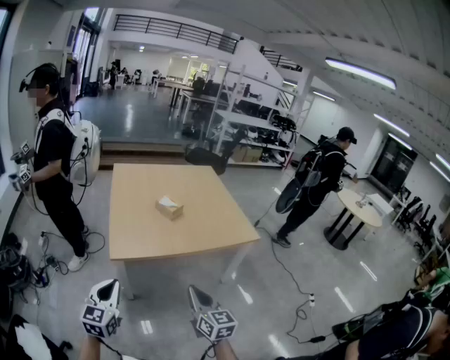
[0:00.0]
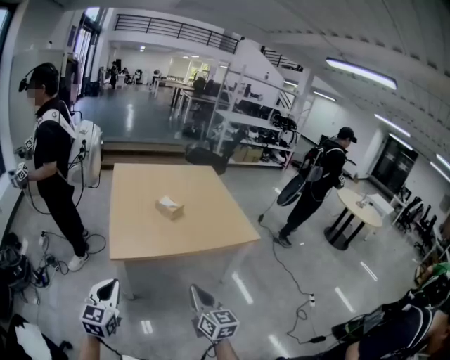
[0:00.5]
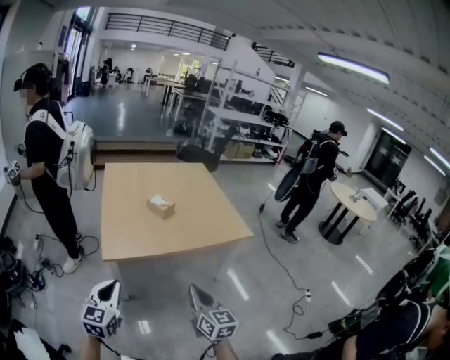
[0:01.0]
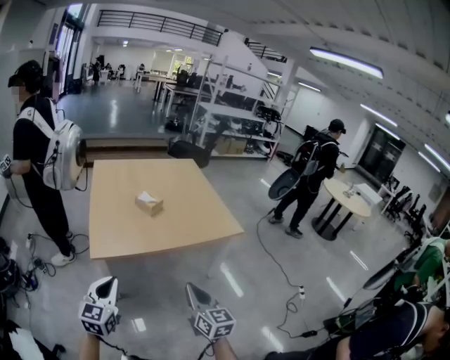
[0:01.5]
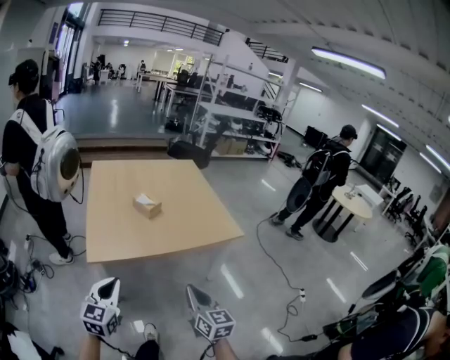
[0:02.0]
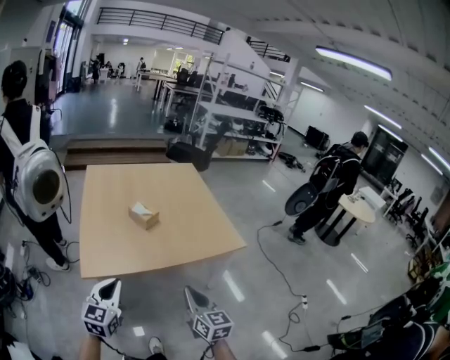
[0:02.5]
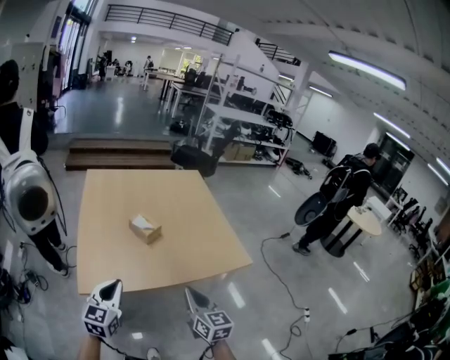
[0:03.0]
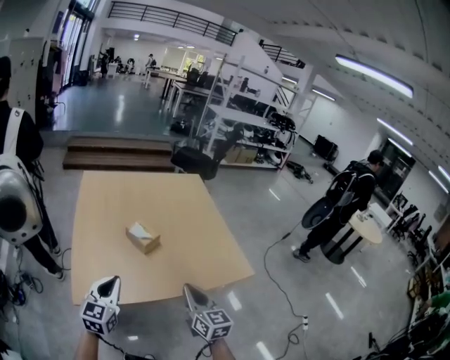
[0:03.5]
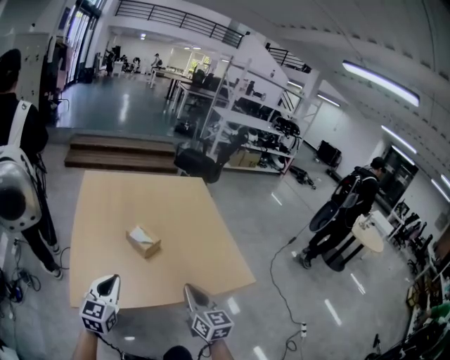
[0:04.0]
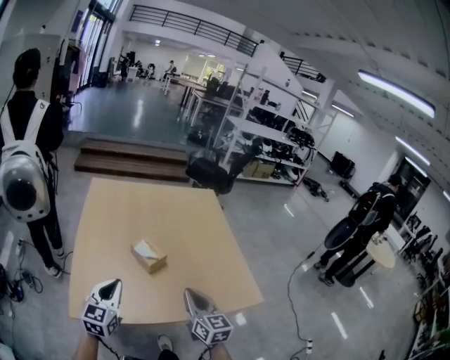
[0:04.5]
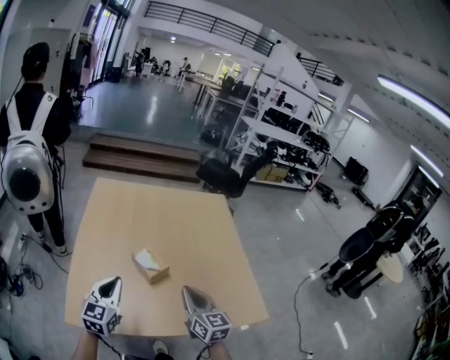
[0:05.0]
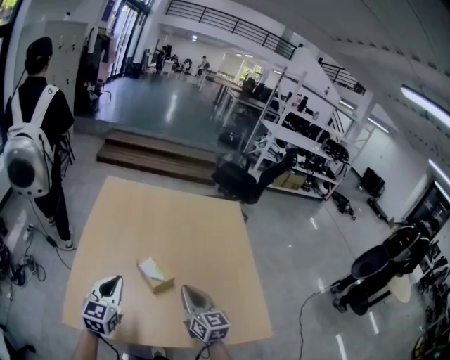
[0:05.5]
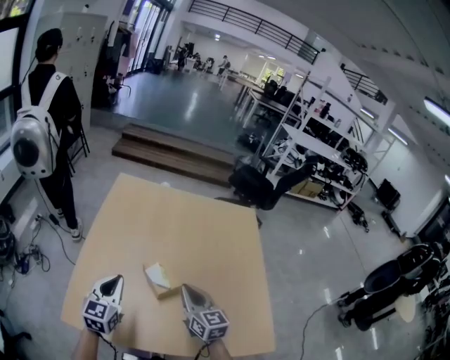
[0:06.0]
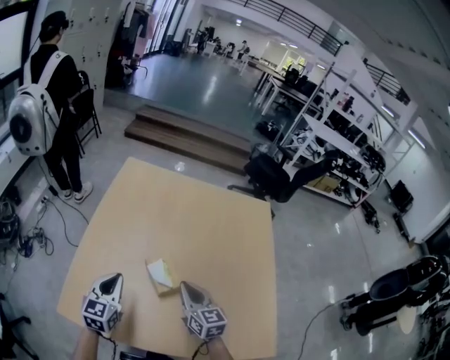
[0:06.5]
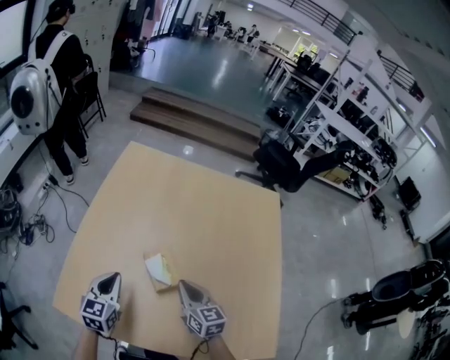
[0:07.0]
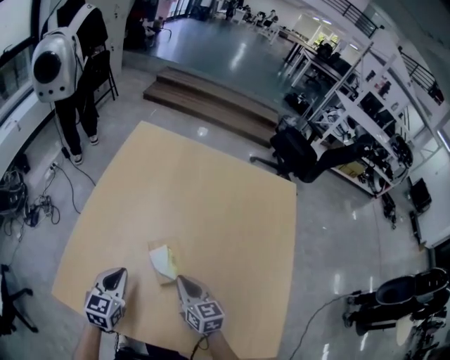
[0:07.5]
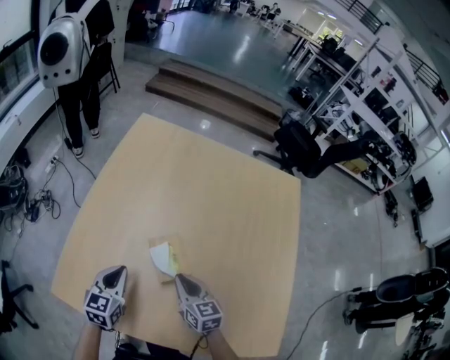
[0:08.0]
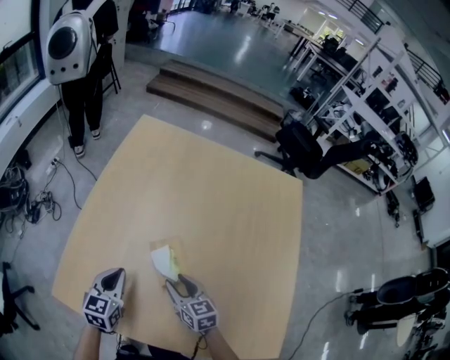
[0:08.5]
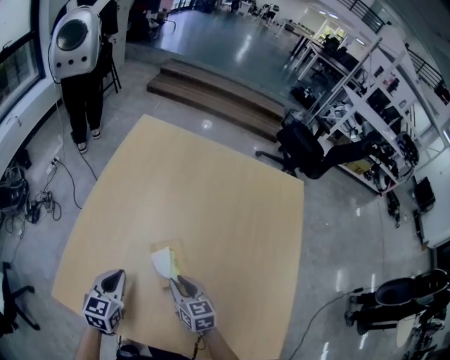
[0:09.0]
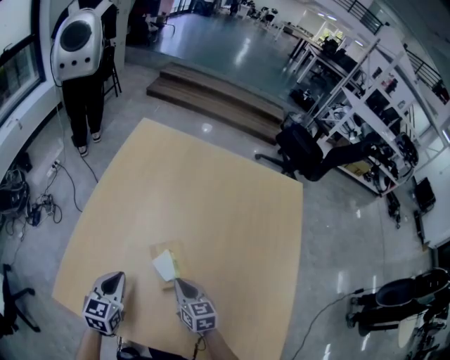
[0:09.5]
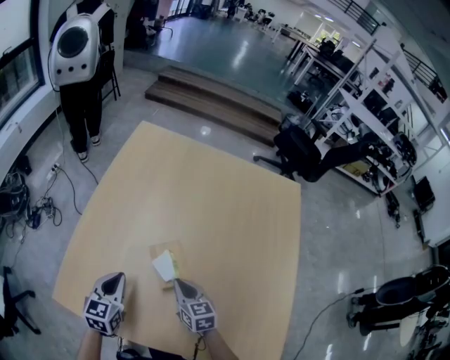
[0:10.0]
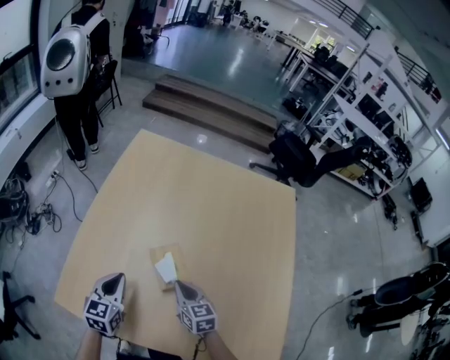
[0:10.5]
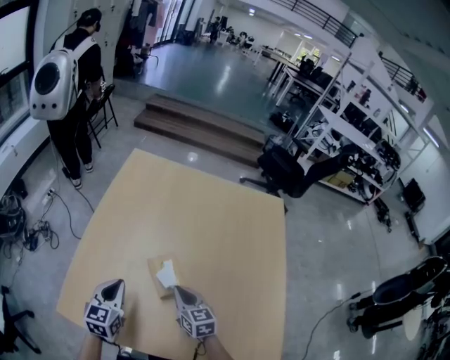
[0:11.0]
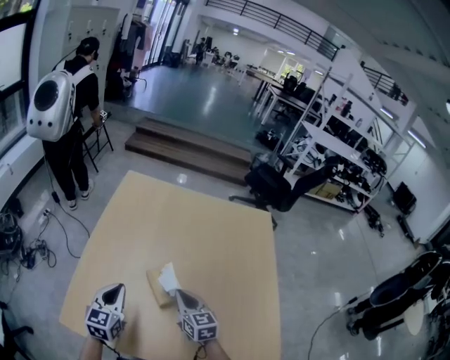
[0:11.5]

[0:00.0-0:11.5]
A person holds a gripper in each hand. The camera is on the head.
0:00.0 to 0:02.0: Both grippers move to the right, some 10 cm.
0:02.0 to 0:04.0: The two grippers go some 30 cm forward.
0:04.0 to 0:06.0: Both grippers travel together forward, approximately 20 cm. The right gripper changes its angle by some 20 degrees.
0:06.0 to 0:07.5: Both grippers move downward, approximately 10 cm.
0:07.5 to 0:09.5: The right gripper moves downward, roughly 5 cm, and opens and closes again.
0:09.5 to 0:11.5: The grippers both shift upward by approximately 10 cm.

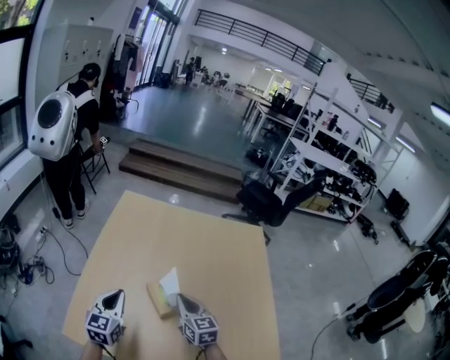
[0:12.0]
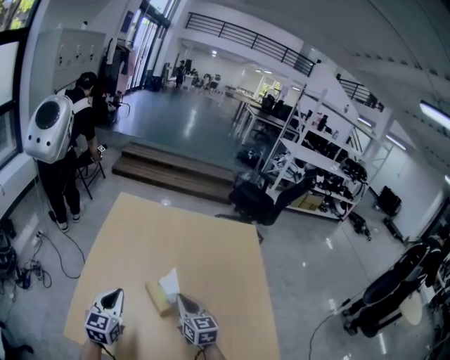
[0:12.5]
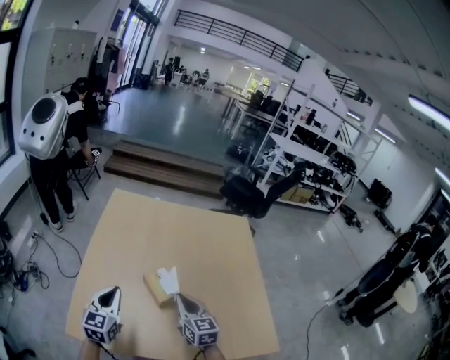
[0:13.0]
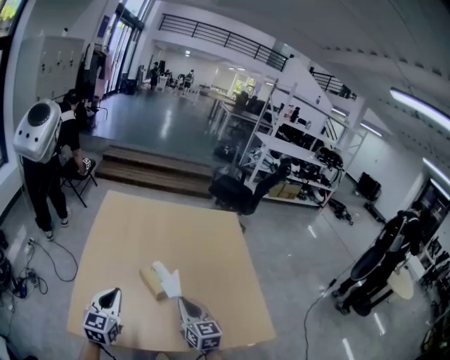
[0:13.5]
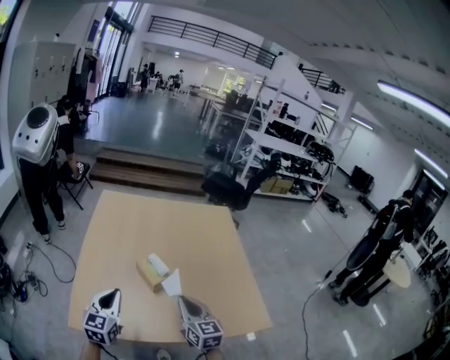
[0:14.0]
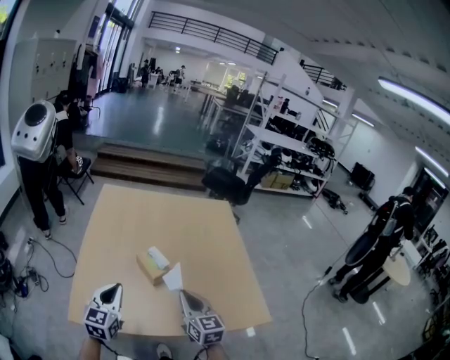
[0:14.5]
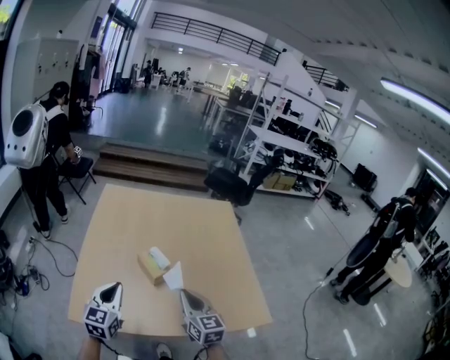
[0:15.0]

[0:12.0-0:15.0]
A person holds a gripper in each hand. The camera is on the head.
0:12.0 to 0:13.5: The left gripper travels backward by approximately 10 cm, while the right gripper travels backward by about 15 cm.
0:13.5 to 0:15.0: The left gripper shifts by some 5 cm, while the right gripper is displaced backward by approximately 5 cm.

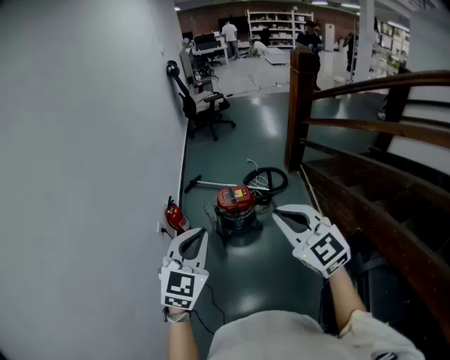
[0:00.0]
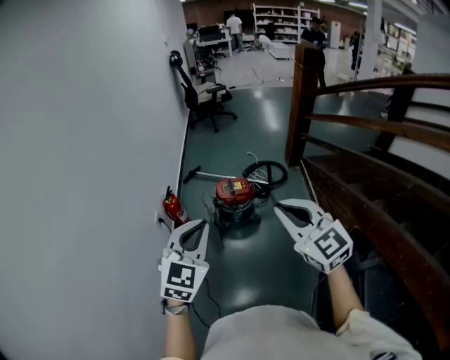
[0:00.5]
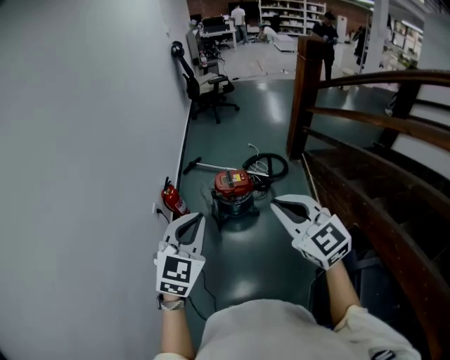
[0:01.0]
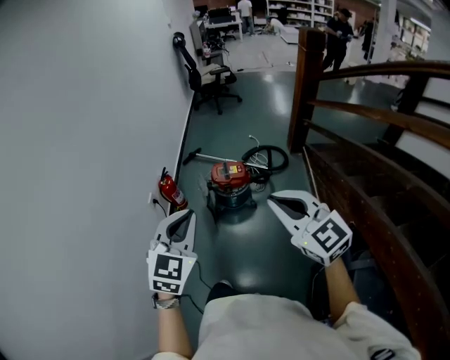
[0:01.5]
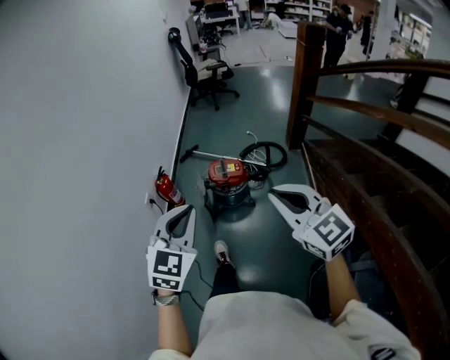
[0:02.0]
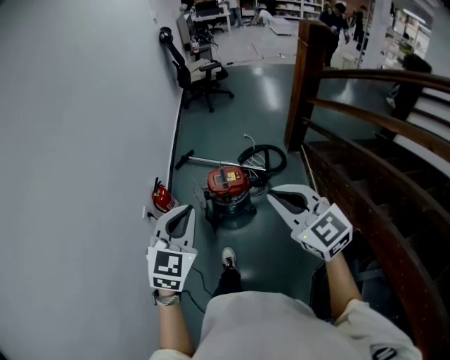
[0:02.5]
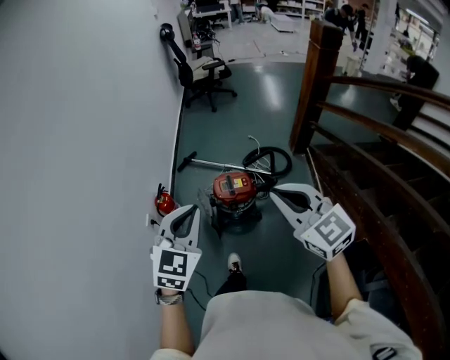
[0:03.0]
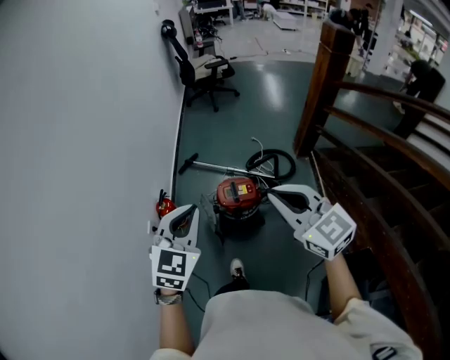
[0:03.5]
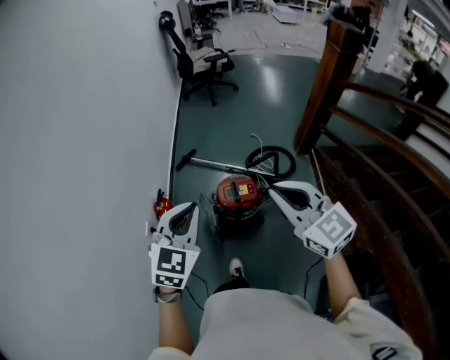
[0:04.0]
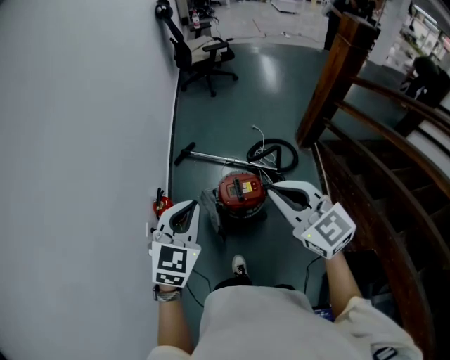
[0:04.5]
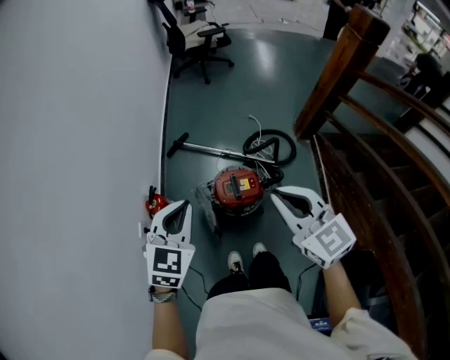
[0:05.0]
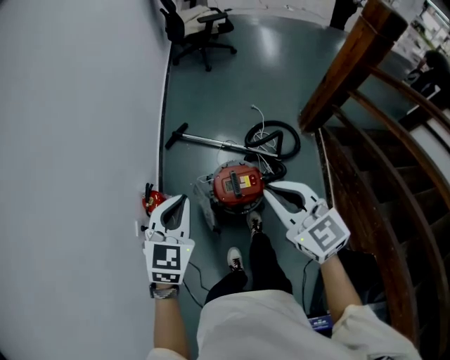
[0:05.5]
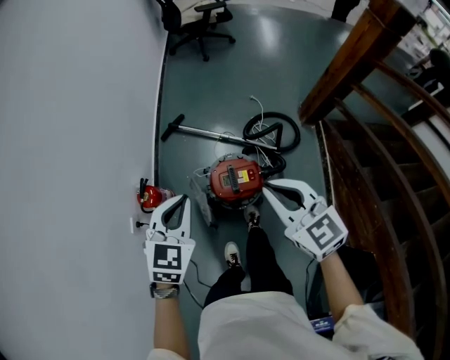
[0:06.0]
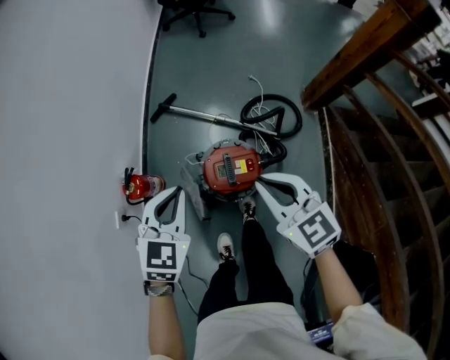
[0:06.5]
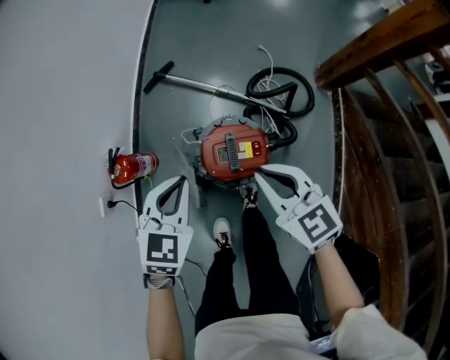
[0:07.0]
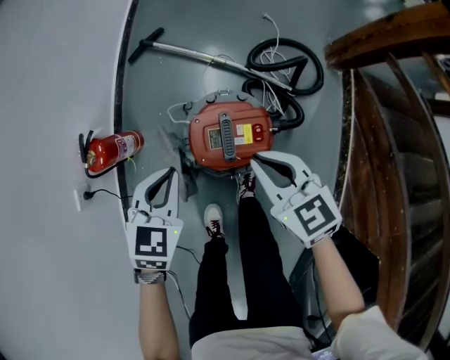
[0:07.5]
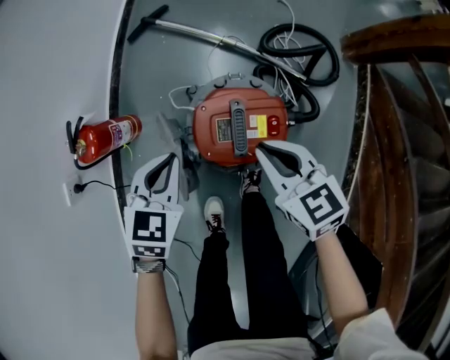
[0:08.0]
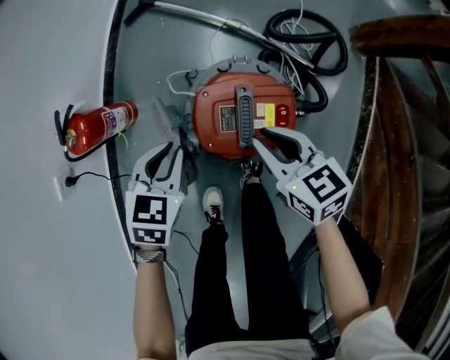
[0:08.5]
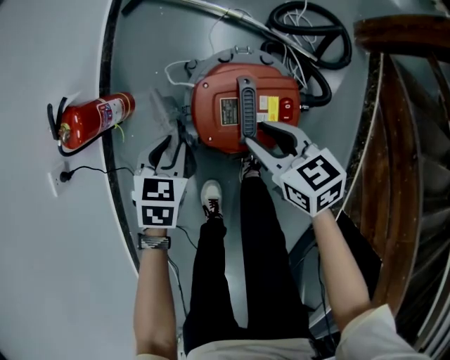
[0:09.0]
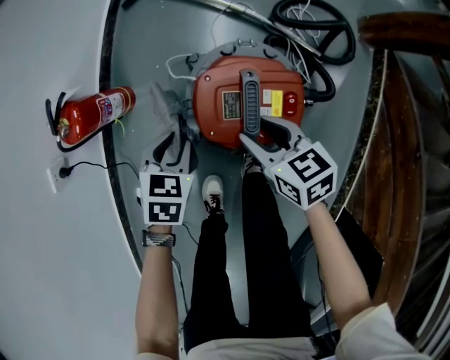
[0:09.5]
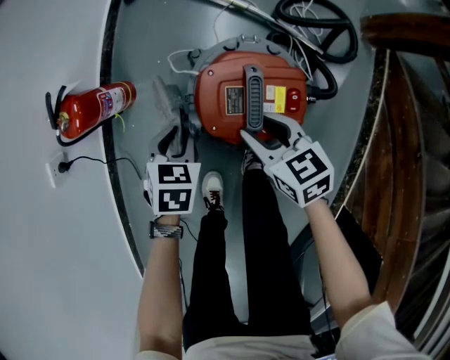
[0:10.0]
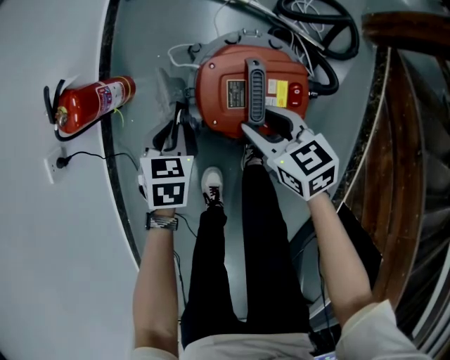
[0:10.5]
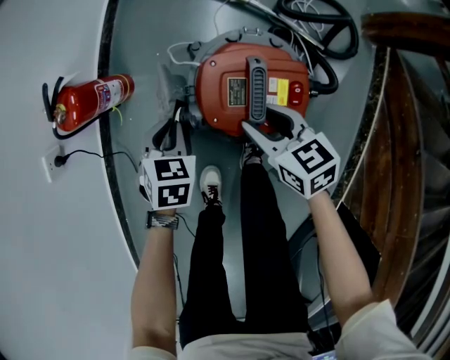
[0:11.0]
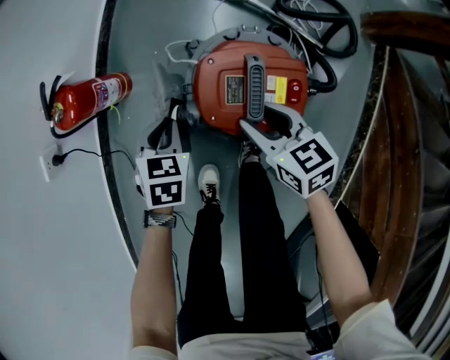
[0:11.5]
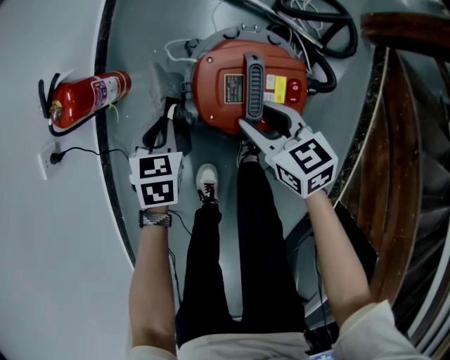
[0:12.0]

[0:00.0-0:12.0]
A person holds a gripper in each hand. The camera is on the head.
0:00.0 to 0:02.0: Both grippers move to the right, about 5 cm.
0:02.0 to 0:04.0: Both grippers travel together forward, roughly 30 cm.
0:04.0 to 0:06.0: Both grippers move forward and downward, about 25 cm.
0:06.0 to 0:08.0: Both grippers move downward, some 40 cm. The left gripper rotates some 20 degrees, while the right gripper turns by roughly 20 degrees.
0:08.0 to 0:10.0: The two grippers go approximately 15 cm downward. The left gripper swivels approximately 20 degrees, and opens its fingers. The right gripper opens its fingers.
0:10.0 to 0:12.0: The grippers make only small movements.
